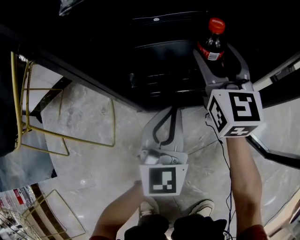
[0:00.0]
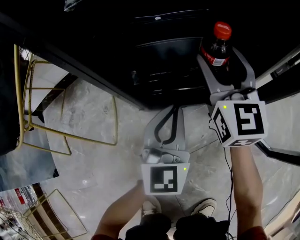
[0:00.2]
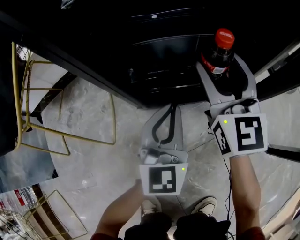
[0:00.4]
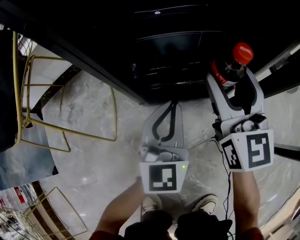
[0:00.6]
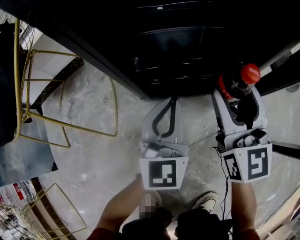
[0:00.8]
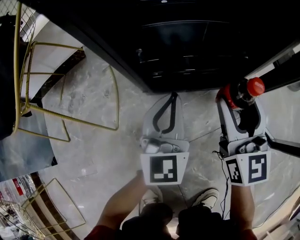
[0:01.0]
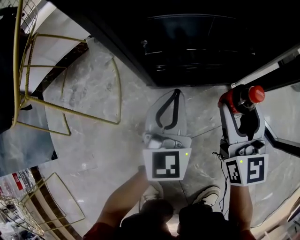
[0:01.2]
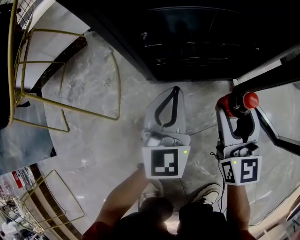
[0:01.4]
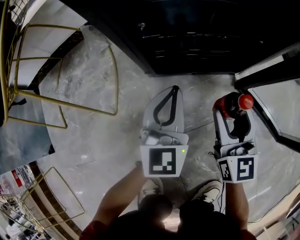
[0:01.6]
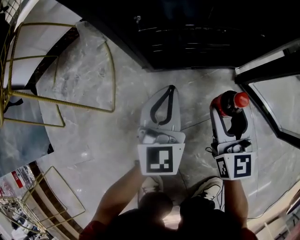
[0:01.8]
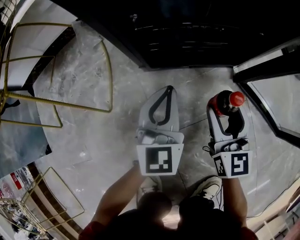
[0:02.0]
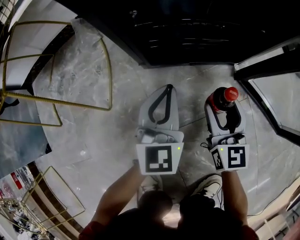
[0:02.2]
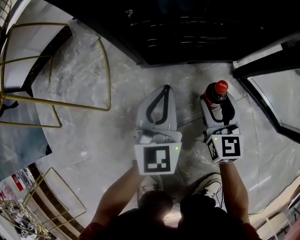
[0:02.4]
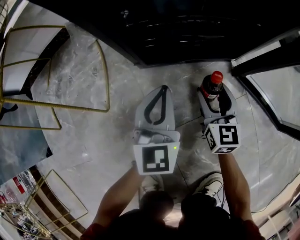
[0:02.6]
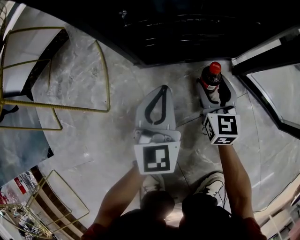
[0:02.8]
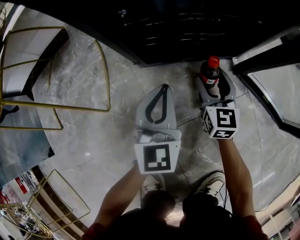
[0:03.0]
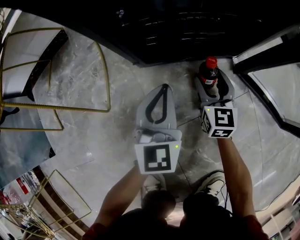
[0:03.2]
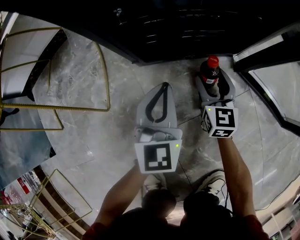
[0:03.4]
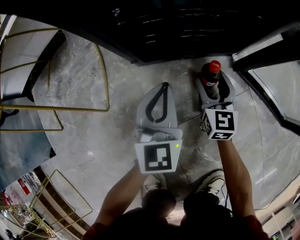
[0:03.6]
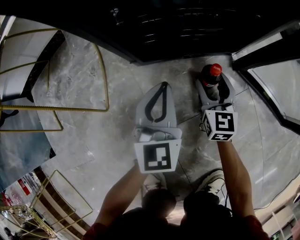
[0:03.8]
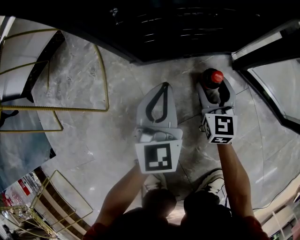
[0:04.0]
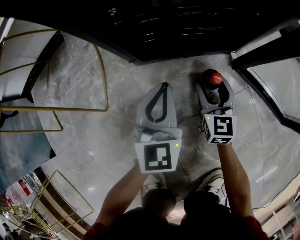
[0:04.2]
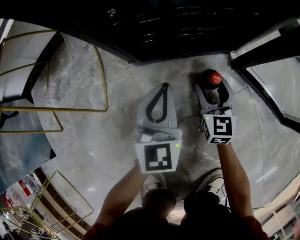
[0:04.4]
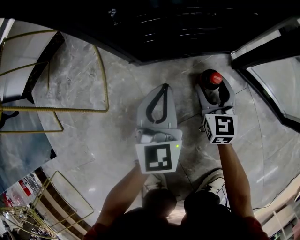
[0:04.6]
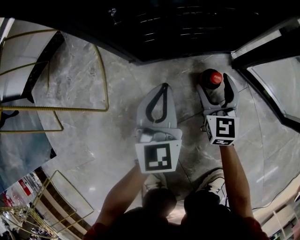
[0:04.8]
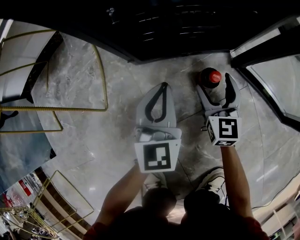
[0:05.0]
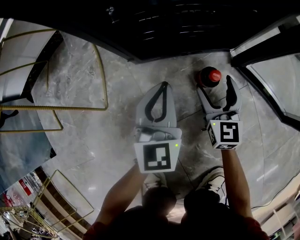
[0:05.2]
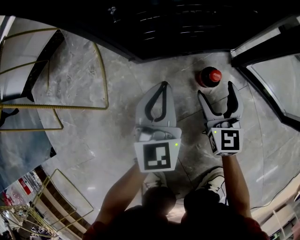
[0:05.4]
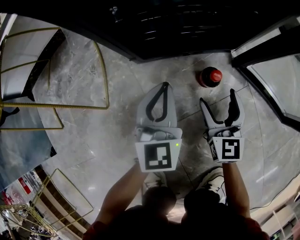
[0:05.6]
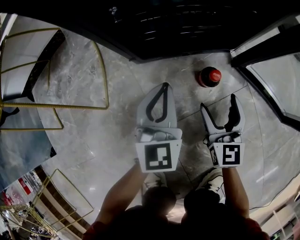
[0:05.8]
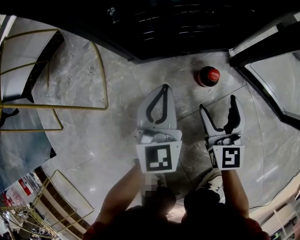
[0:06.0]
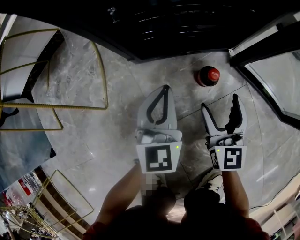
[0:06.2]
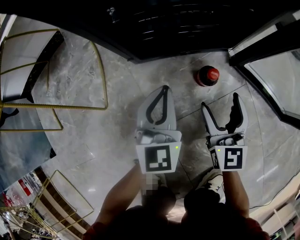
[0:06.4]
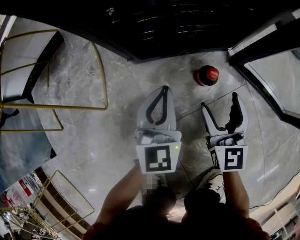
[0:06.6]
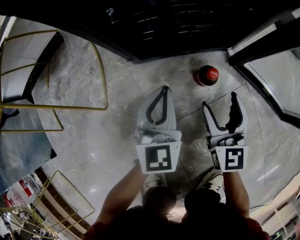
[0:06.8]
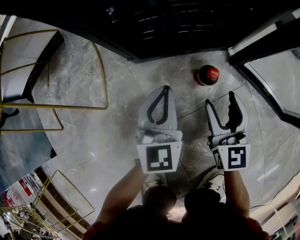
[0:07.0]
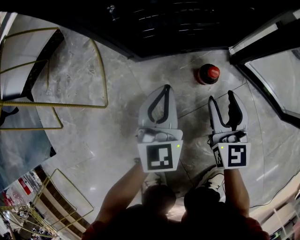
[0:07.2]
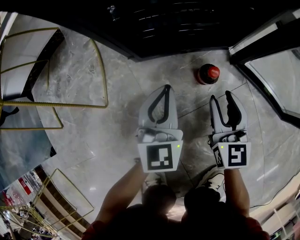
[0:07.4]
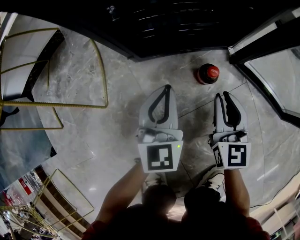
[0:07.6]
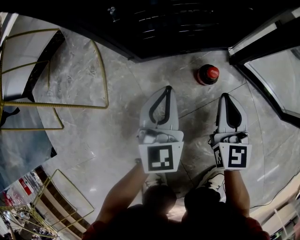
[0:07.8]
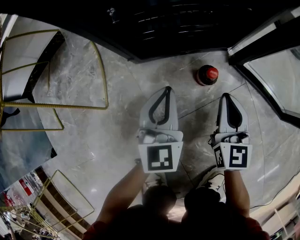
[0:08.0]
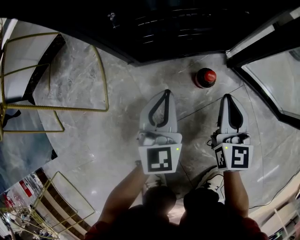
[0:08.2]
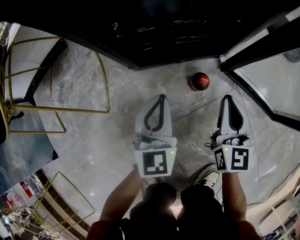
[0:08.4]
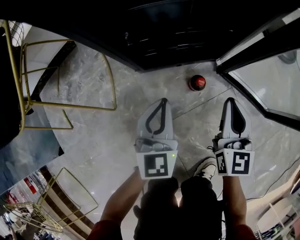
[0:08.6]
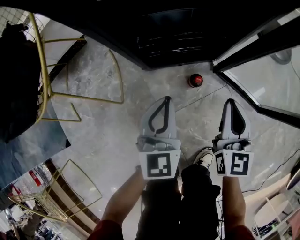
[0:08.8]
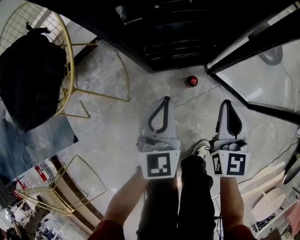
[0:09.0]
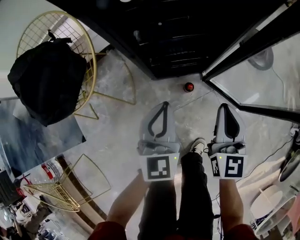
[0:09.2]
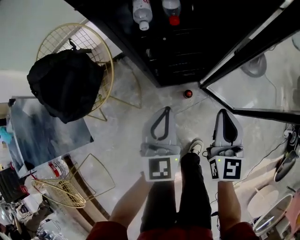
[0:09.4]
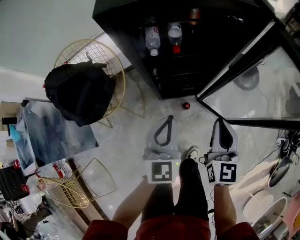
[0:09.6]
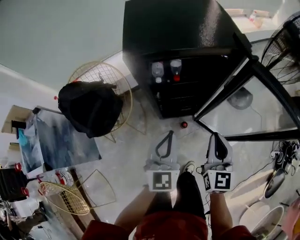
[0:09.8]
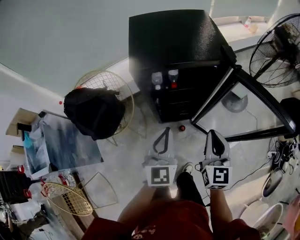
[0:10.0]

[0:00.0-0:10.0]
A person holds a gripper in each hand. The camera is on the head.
0:00.0 to 0:01.4: The left gripper moves approximately 5 cm, while the right gripper shifts roughly 20 cm backward and downward.
0:01.4 to 0:02.8: The left gripper shifts some 5 cm downward. The right gripper moves downward, roughly 15 cm.
0:02.8 to 0:04.2: The grippers make only small movements.
0:04.2 to 0:05.8: The right gripper is displaced backward by some 5 cm.
0:05.8 to 0:07.2: The right gripper closes its fingers.
0:07.2 to 0:08.6: The two grippers go approximately 10 cm upward. The right gripper closes its fingers.
0:08.6 to 0:10.0: The two grippers go roughly 70 cm upward.

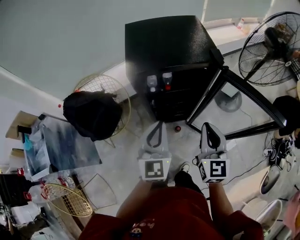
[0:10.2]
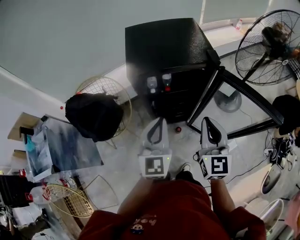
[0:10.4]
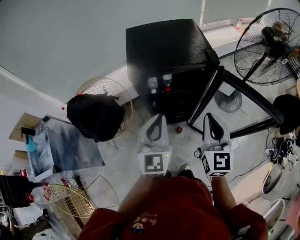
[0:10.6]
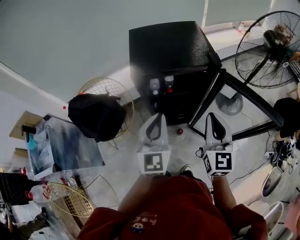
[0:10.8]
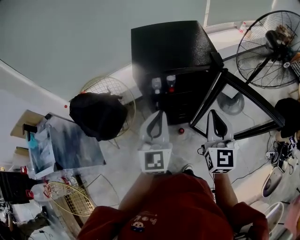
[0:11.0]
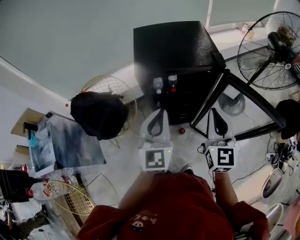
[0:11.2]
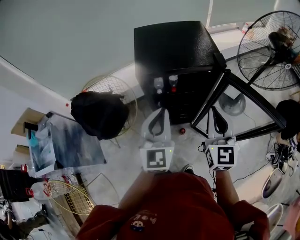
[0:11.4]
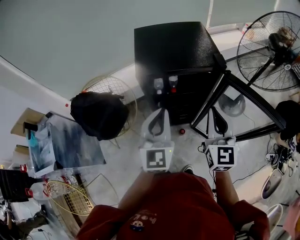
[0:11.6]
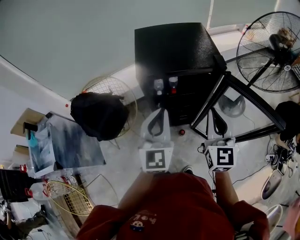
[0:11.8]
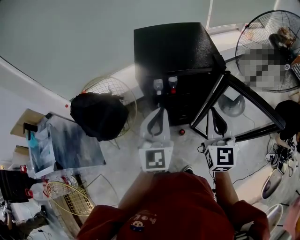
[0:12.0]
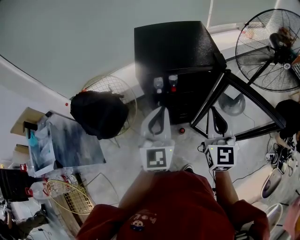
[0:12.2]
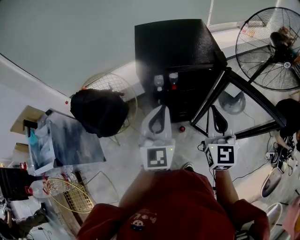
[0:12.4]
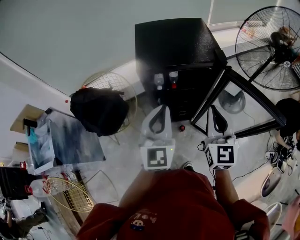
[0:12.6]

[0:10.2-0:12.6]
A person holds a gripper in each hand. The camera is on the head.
0:10.2 to 0:11.4: The grippers both shift upward by roughly 5 cm.
0:11.4 to 0:12.6: Both grippers stay about where they are.

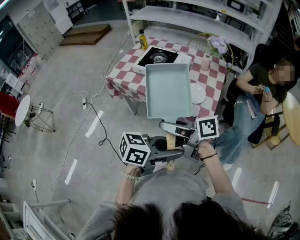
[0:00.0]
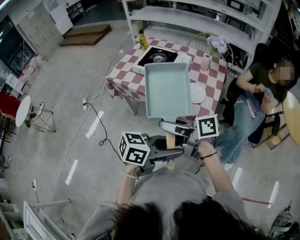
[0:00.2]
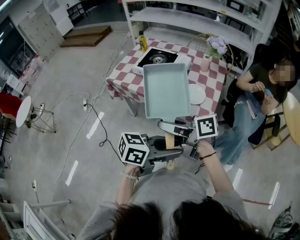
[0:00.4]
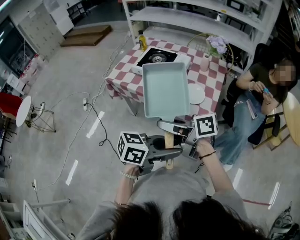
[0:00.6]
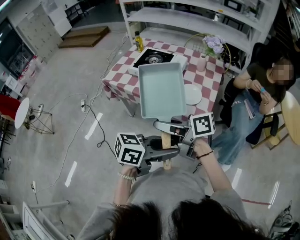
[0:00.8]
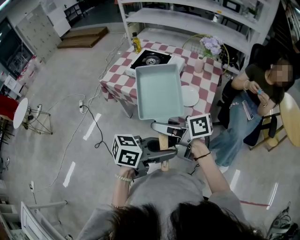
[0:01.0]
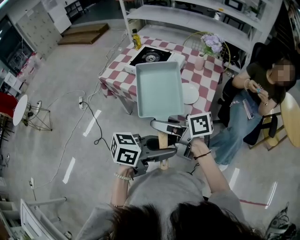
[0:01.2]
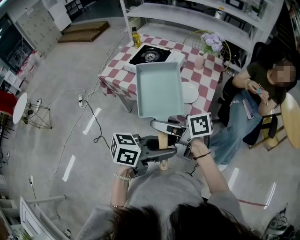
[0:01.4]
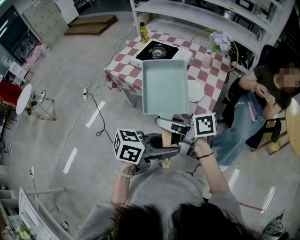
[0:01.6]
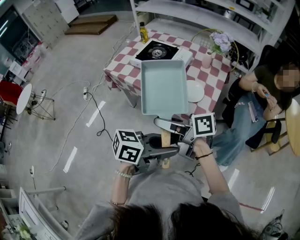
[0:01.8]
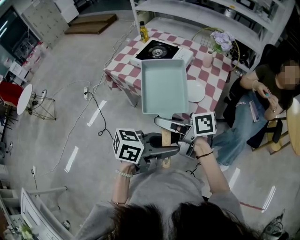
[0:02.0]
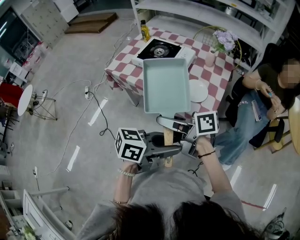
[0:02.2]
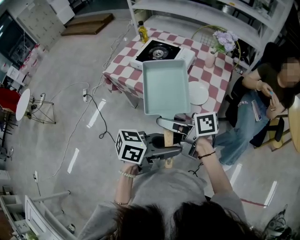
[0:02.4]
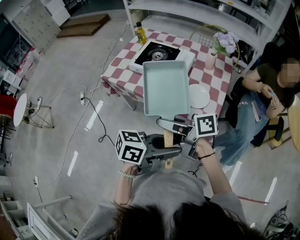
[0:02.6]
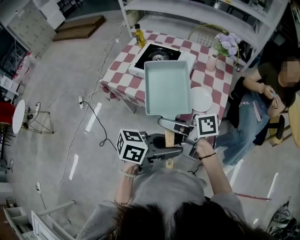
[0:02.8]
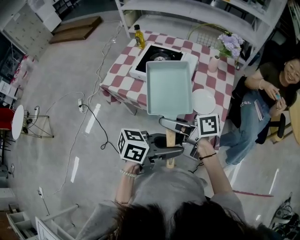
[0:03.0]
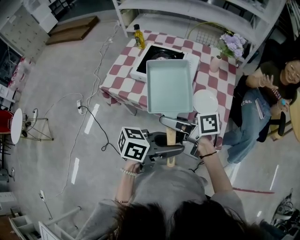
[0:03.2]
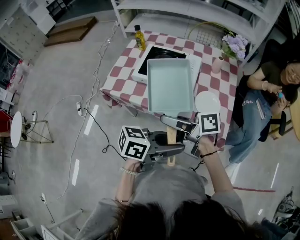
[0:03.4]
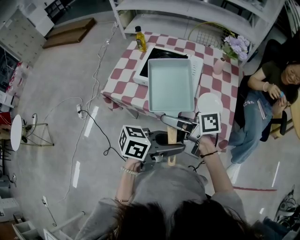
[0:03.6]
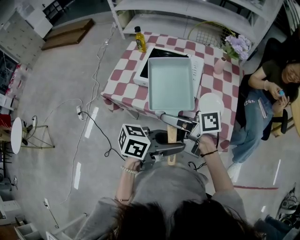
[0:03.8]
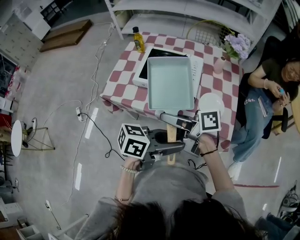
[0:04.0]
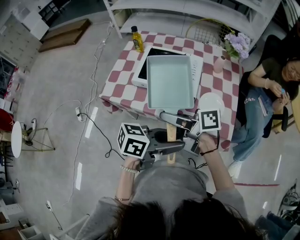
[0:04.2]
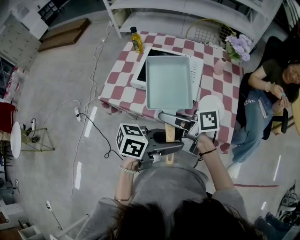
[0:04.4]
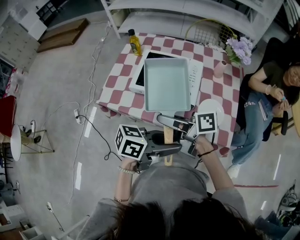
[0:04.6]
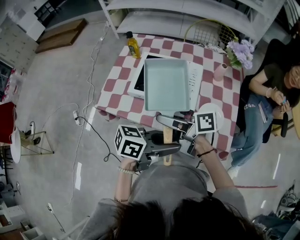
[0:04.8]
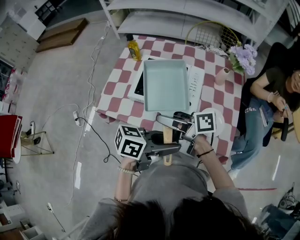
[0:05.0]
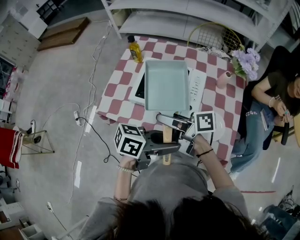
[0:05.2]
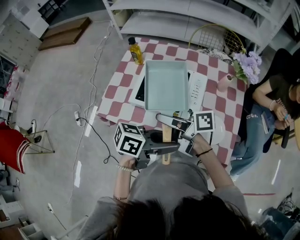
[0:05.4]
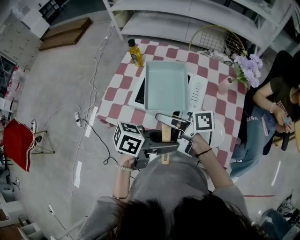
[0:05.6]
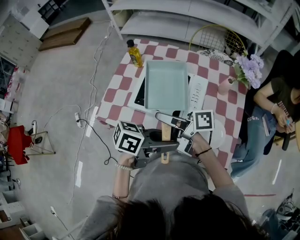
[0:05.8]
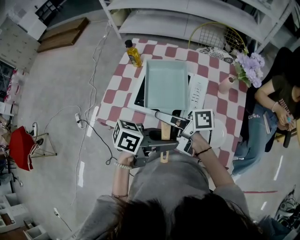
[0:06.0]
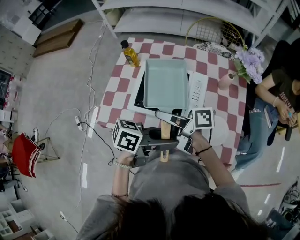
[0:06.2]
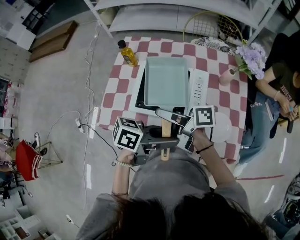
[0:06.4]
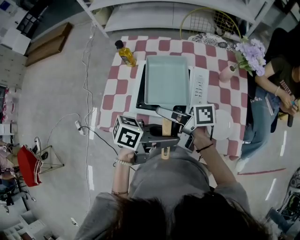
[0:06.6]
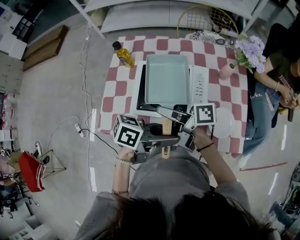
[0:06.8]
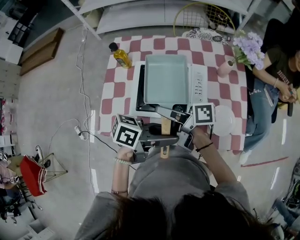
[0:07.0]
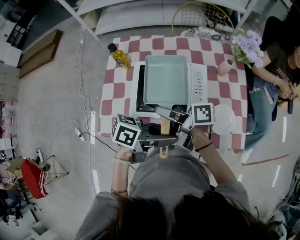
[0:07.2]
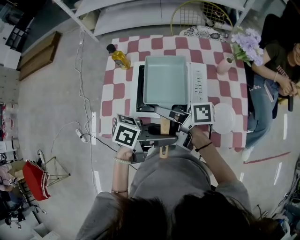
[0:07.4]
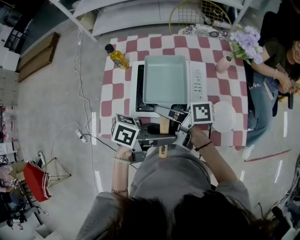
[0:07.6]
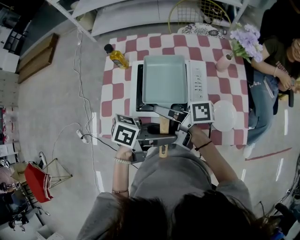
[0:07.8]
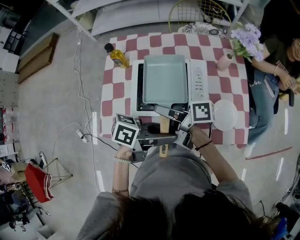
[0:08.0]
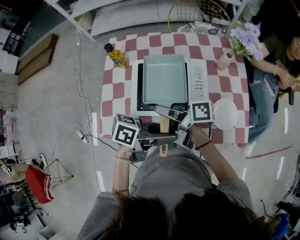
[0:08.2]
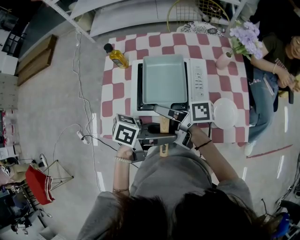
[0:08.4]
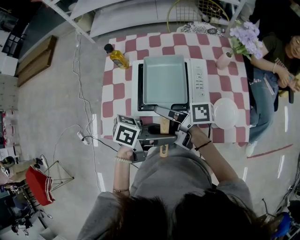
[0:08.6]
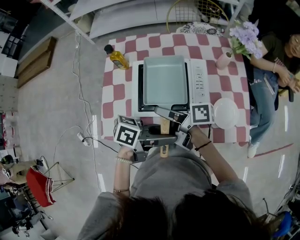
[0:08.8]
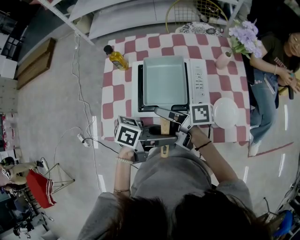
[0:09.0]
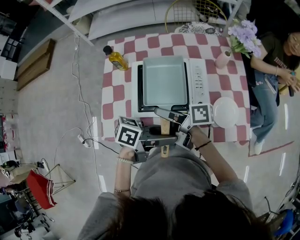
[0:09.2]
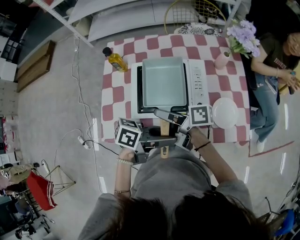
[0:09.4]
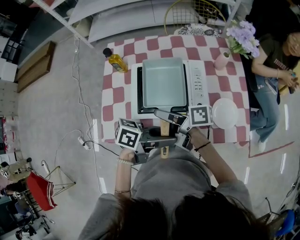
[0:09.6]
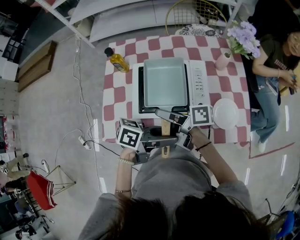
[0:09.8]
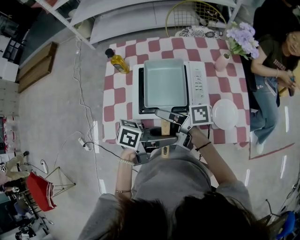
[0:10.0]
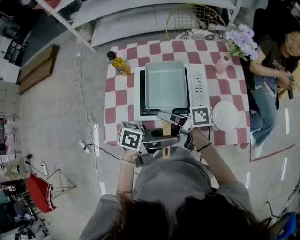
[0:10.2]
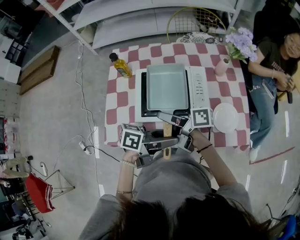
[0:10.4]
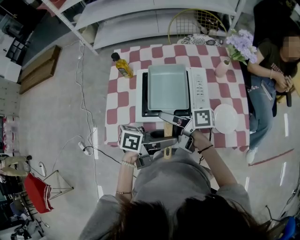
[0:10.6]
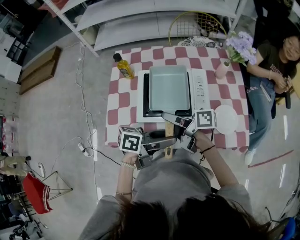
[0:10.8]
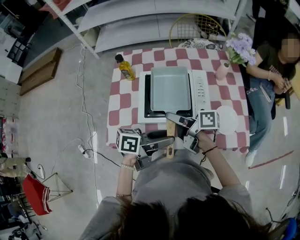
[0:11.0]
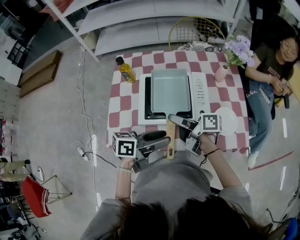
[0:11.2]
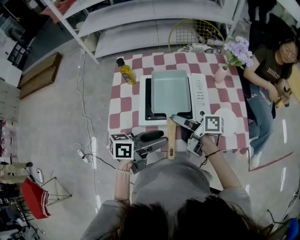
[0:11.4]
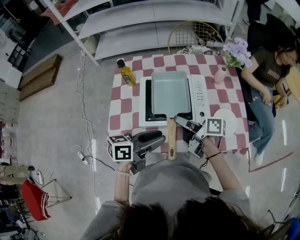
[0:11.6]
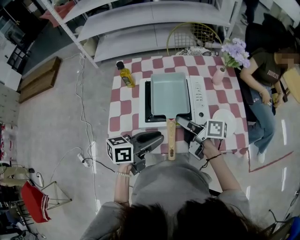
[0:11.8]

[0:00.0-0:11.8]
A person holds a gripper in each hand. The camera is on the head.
0:00.0 to 0:01.4: The grippers move only a little.
0:01.4 to 0:03.0: The left gripper ends up roughly 15 cm from where it was; the right gripper moves roughly 15 cm.
0:03.0 to 0:04.4: The right gripper shifts by roughly 10 cm, while the left gripper ends up some 10 cm from where it was.
0:04.4 to 0:06.0: The right gripper shifts by roughly 15 cm, while the left gripper moves about 15 cm.
0:06.0 to 0:07.4: The right gripper changes place by approximately 5 cm. The left gripper changes place by about 5 cm.
0:07.4 to 0:10.4: There are only small adjustments of the grippers.
0:10.4 to 0:11.8: The right gripper moves some 5 cm; the left gripper shifts by some 10 cm, turns by about 20 degrees, and closes.
